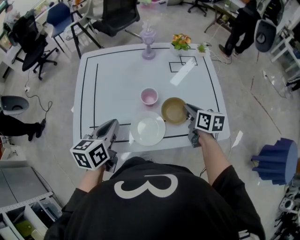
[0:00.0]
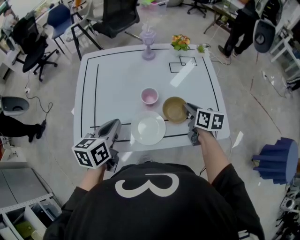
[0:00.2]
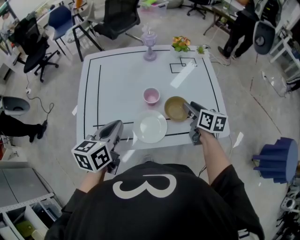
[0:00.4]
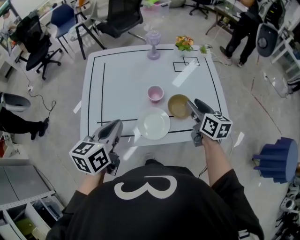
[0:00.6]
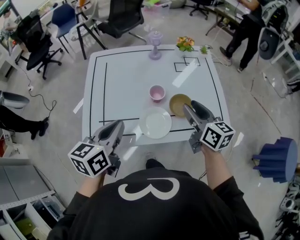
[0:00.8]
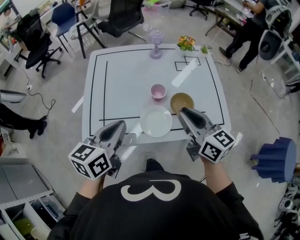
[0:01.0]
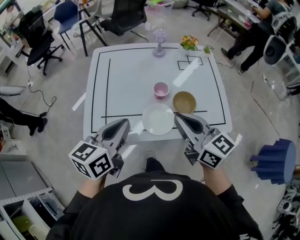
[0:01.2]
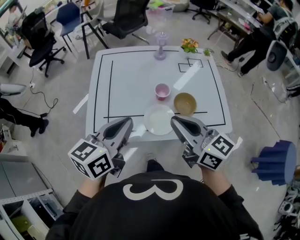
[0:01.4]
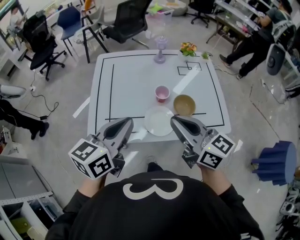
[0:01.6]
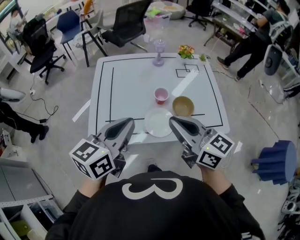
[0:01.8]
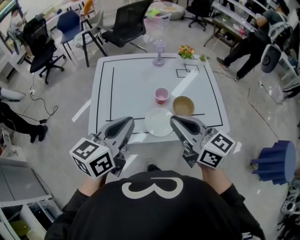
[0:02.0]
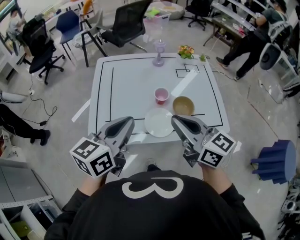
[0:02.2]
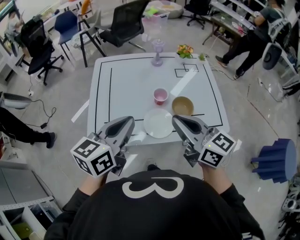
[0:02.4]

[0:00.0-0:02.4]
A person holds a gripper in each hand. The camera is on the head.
0:00.0 to 0:01.2: The left gripper is displaced upward and backward by about 10 cm. Meanwhile the right gripper goes about 25 cm upward, backward and to the left, rotates about 40 degrees, and opens, then closes once more.
0:01.2 to 0:02.4: The grippers move only a little.

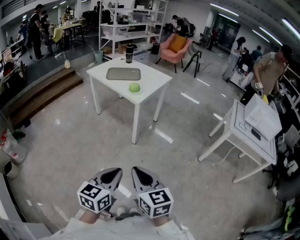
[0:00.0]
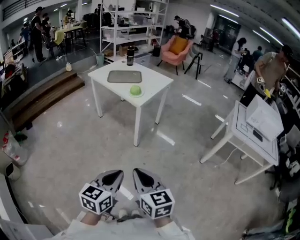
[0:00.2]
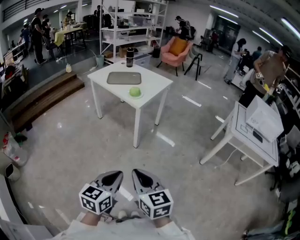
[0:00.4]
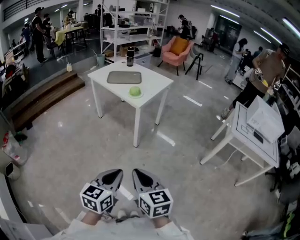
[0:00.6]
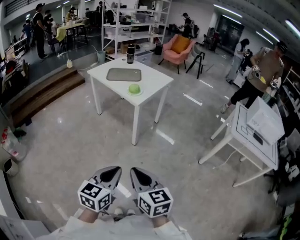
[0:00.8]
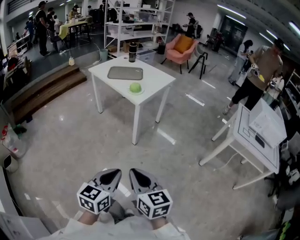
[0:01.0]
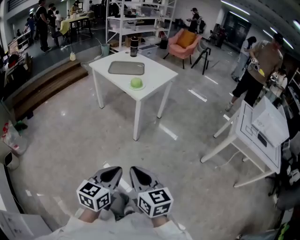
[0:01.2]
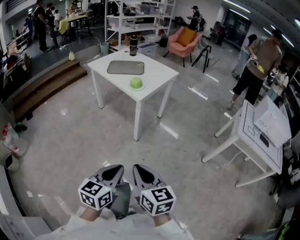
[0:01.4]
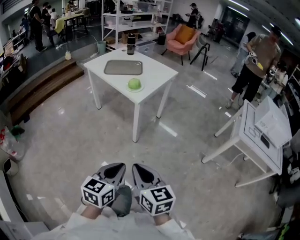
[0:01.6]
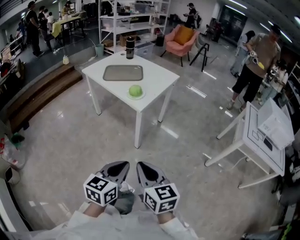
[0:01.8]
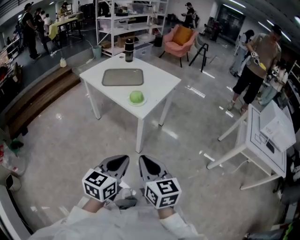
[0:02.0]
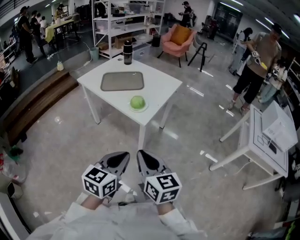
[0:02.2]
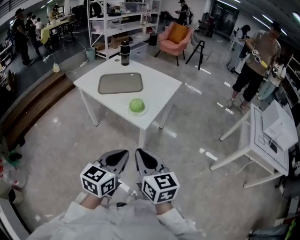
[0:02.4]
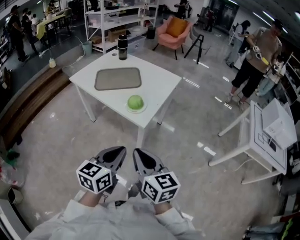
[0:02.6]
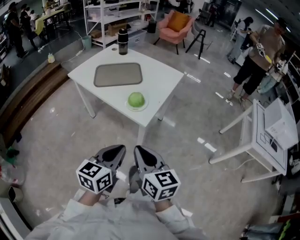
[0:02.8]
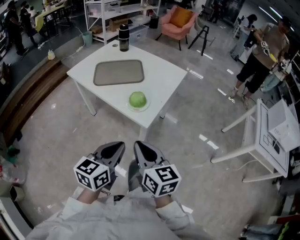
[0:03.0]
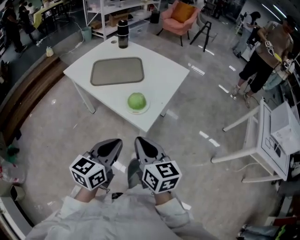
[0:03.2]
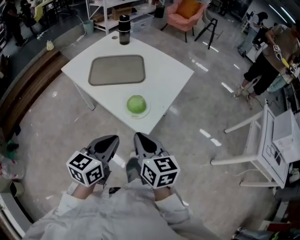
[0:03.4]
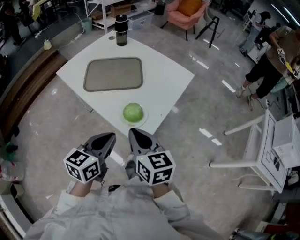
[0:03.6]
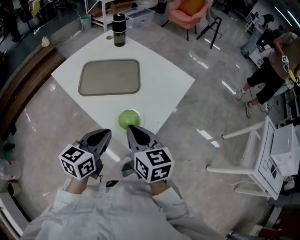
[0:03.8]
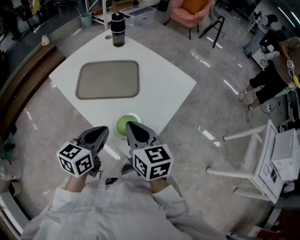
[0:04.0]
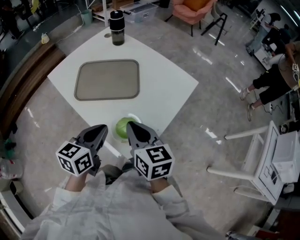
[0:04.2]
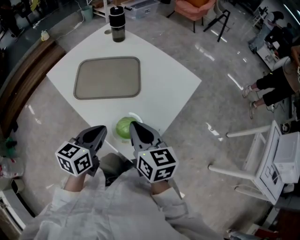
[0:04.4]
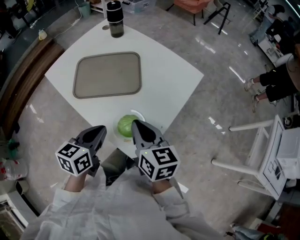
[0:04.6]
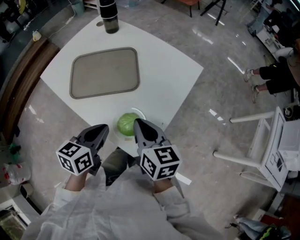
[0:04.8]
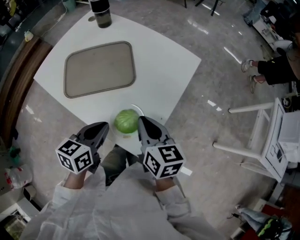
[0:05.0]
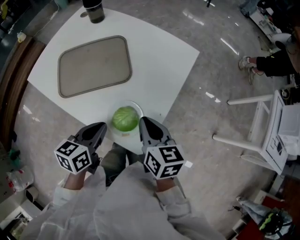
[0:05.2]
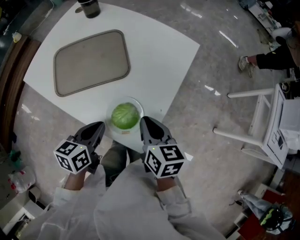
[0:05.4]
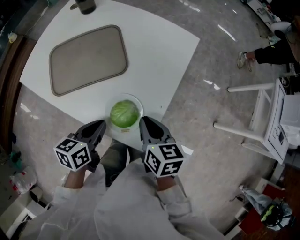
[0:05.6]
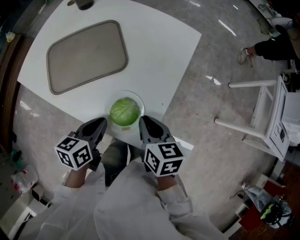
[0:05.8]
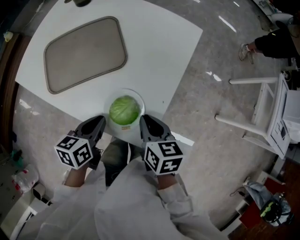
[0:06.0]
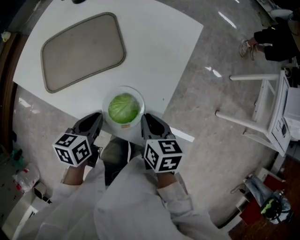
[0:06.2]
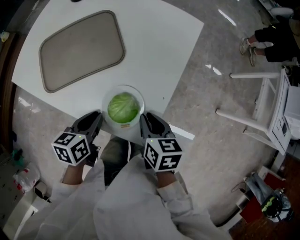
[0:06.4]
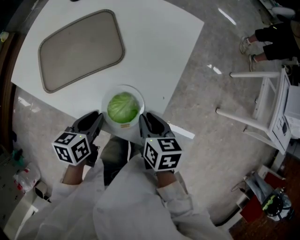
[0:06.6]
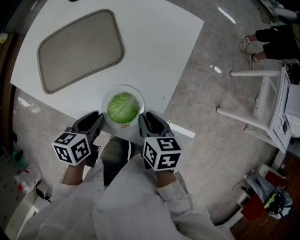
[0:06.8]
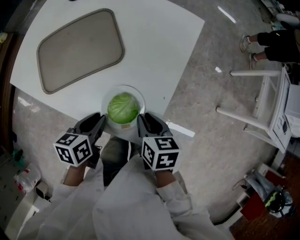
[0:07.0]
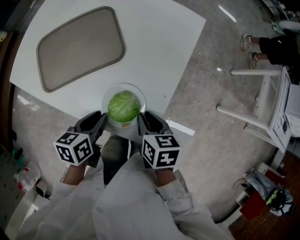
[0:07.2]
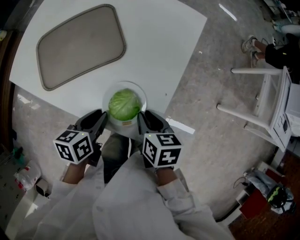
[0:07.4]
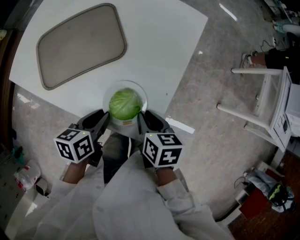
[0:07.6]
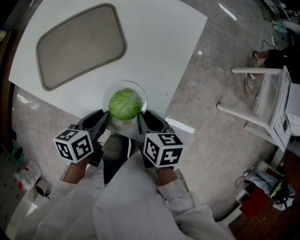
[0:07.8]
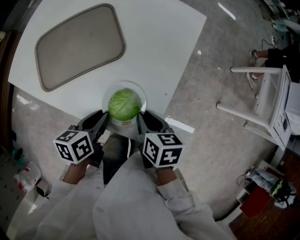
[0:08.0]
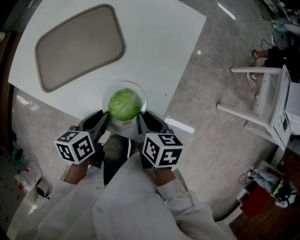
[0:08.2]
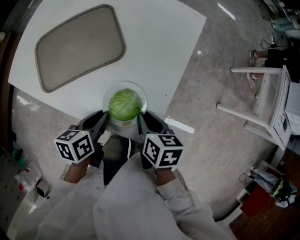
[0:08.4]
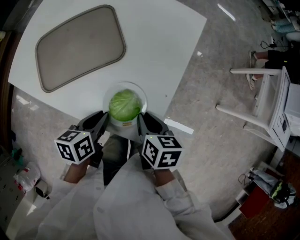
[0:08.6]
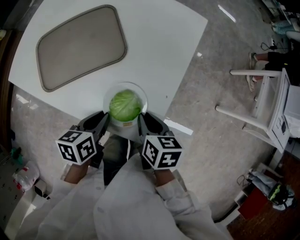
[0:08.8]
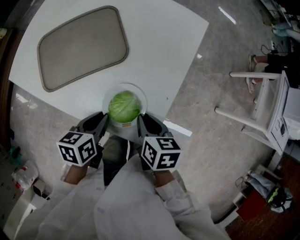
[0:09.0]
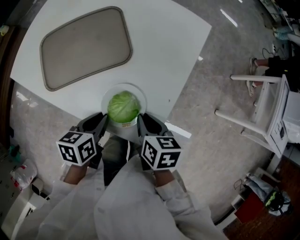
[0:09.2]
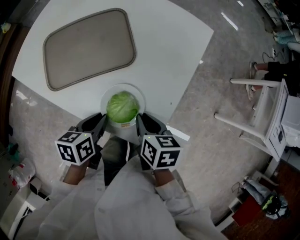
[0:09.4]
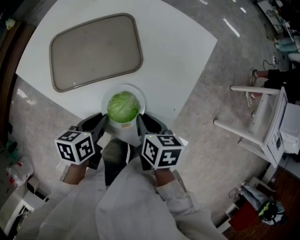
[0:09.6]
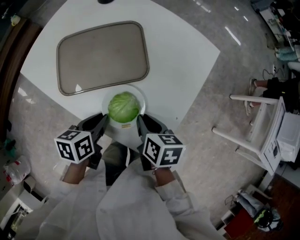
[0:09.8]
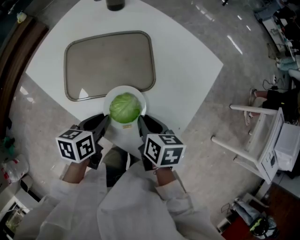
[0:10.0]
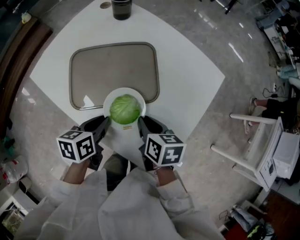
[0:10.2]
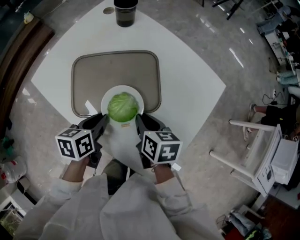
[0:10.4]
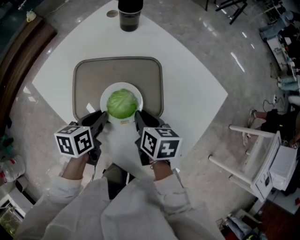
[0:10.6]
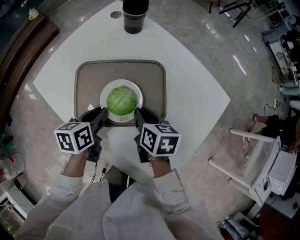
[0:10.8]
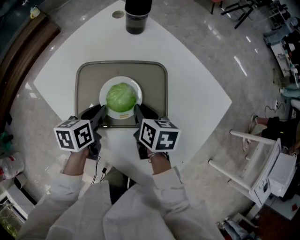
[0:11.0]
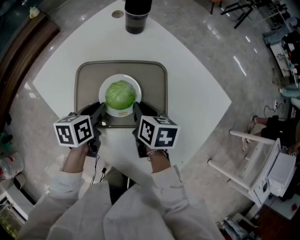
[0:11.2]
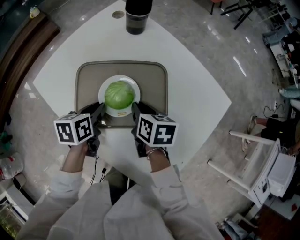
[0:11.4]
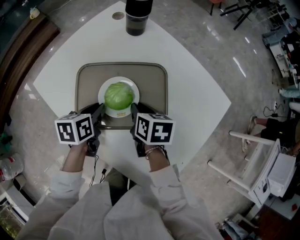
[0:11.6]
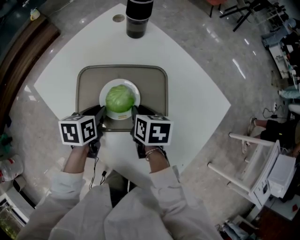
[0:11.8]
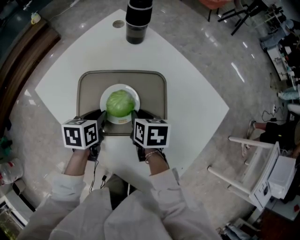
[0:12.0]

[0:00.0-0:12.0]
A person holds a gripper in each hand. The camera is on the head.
0:00.0 to 0:01.6: Both grippers travel together forward, approximately 15 cm.
0:01.6 to 0:03.0: Both grippers travel together forward, approximately 35 cm.
0:03.0 to 0:04.4: The grippers both shift forward by about 30 cm.
0:04.4 to 0:06.0: The grippers both shift downward by about 15 cm. The left gripper changes its angle by about 20 degrees. Meanwhile the right gripper swivels approximately 30 degrees.
0:06.0 to 0:09.0: The grippers make only small movements.
0:09.0 to 0:10.4: The left gripper travels to the left and forward by roughly 20 cm; the right gripper is displaced forward and to the left by some 20 cm.
0:10.4 to 0:12.0: The two grippers go about 10 cm forward.

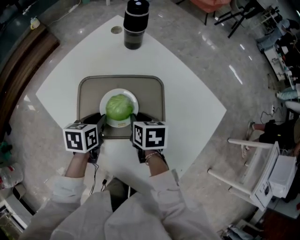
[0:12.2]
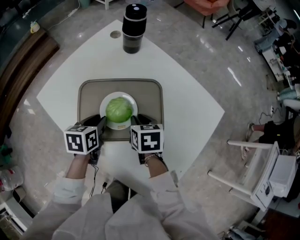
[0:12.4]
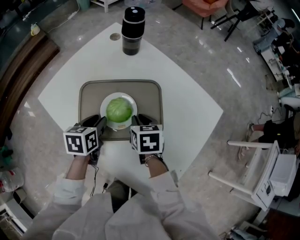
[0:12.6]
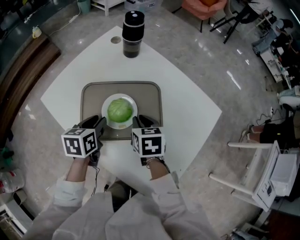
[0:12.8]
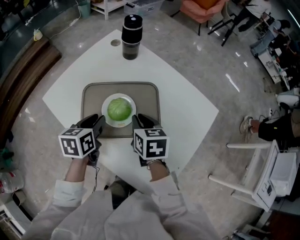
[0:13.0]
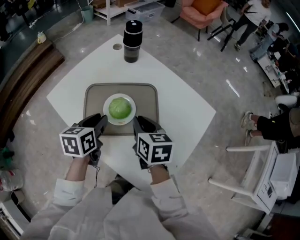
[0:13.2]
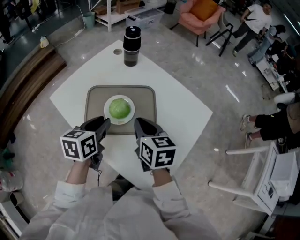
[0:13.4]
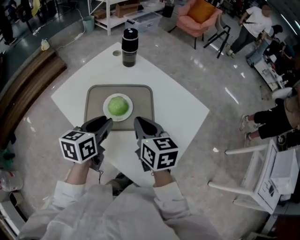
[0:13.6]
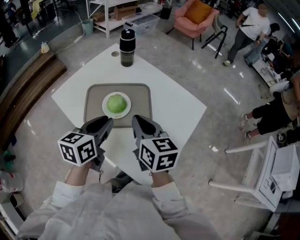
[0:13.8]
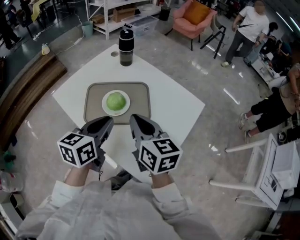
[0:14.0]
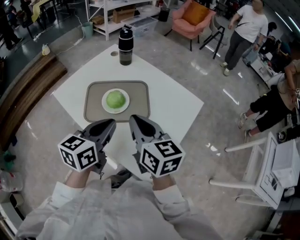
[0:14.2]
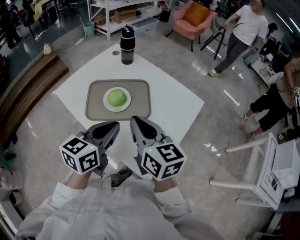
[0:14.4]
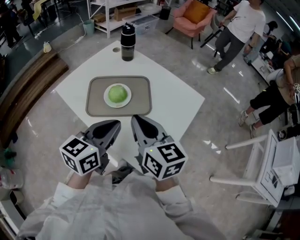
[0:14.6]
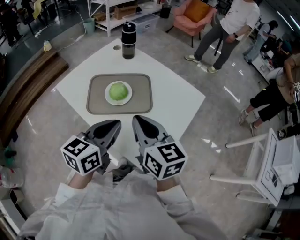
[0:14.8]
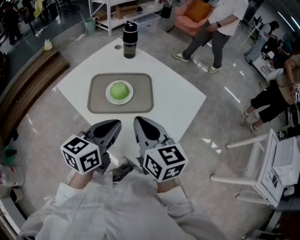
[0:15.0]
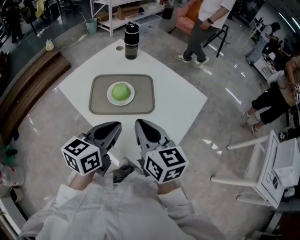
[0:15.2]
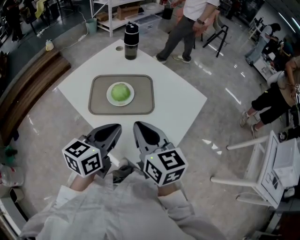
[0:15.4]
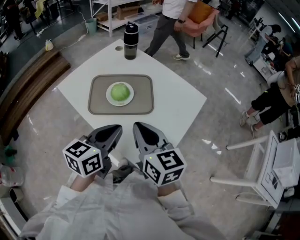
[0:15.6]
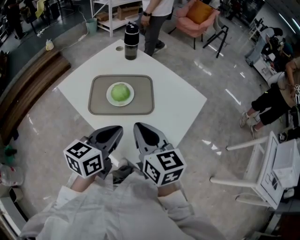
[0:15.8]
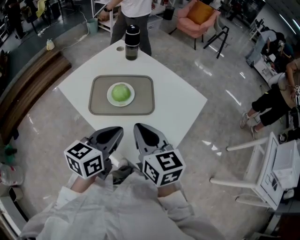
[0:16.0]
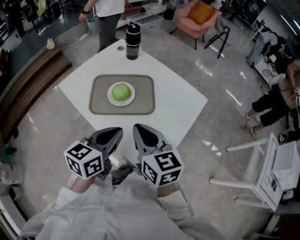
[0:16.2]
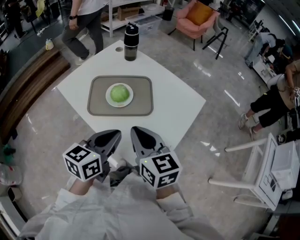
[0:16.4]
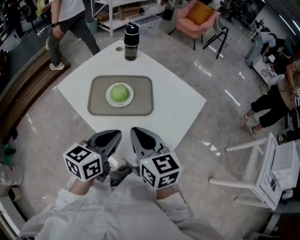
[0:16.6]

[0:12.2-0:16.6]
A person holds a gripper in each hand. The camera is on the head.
0:12.2 to 0:13.6: The two grippers go roughly 20 cm upward and backward. The right gripper changes its angle by some 30 degrees. The left gripper turns by about 20 degrees.
0:13.6 to 0:15.2: The left gripper moves backward, to the right and upward, about 15 cm, and closes its fingers; the right gripper heads backward and upward, covering about 15 cm.
0:15.2 to 0:16.6: The grippers stay close to where they were, moving slightly.

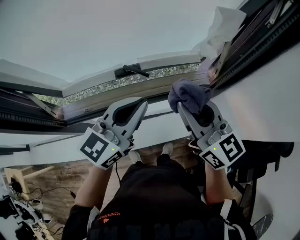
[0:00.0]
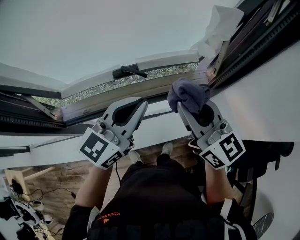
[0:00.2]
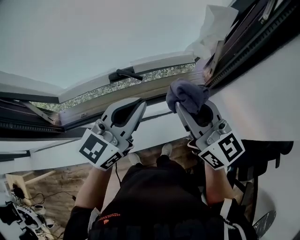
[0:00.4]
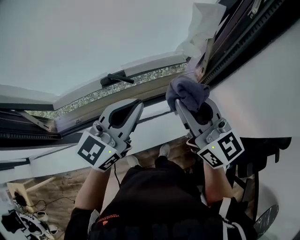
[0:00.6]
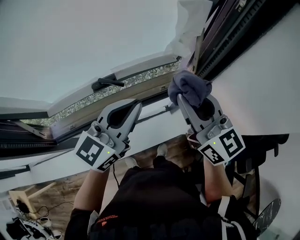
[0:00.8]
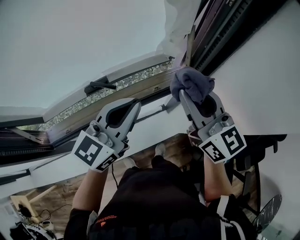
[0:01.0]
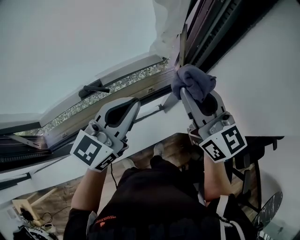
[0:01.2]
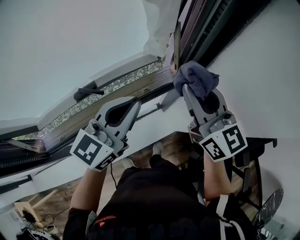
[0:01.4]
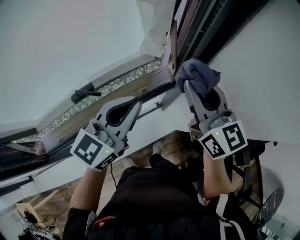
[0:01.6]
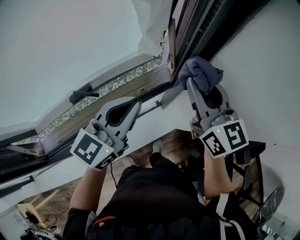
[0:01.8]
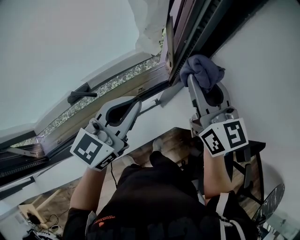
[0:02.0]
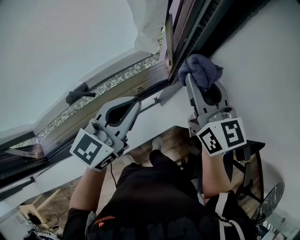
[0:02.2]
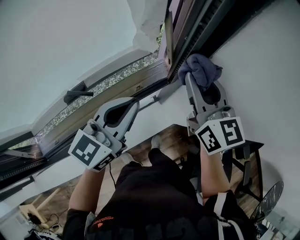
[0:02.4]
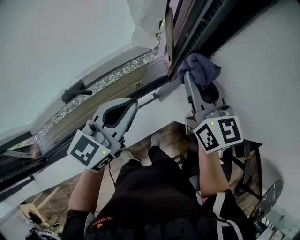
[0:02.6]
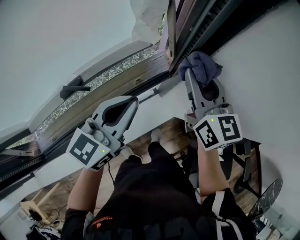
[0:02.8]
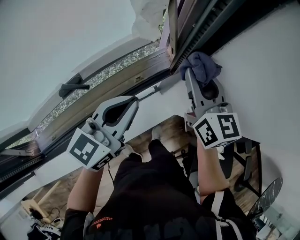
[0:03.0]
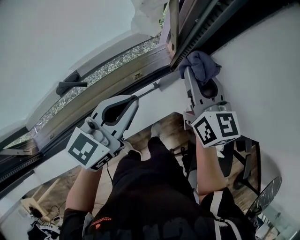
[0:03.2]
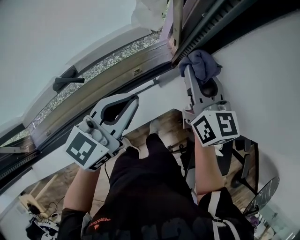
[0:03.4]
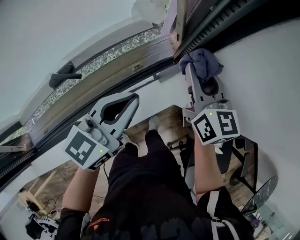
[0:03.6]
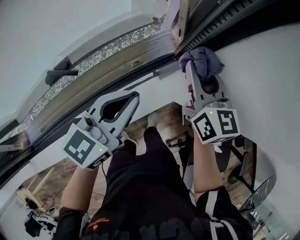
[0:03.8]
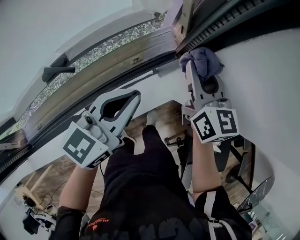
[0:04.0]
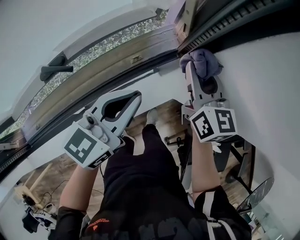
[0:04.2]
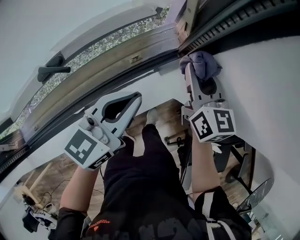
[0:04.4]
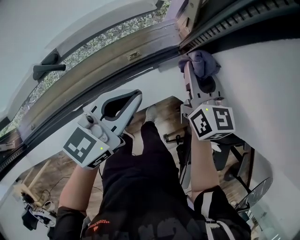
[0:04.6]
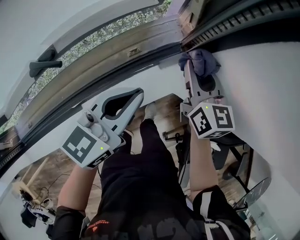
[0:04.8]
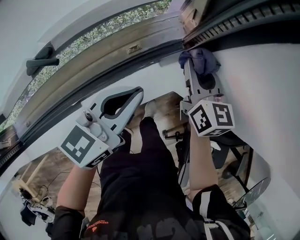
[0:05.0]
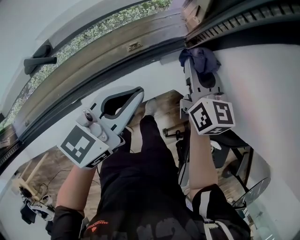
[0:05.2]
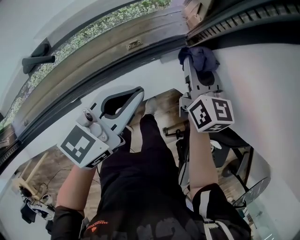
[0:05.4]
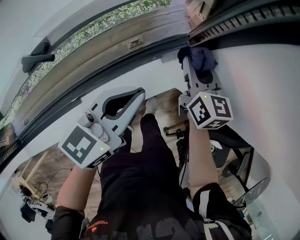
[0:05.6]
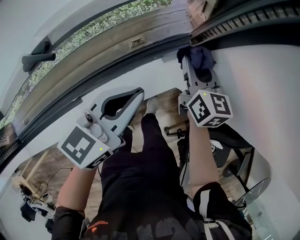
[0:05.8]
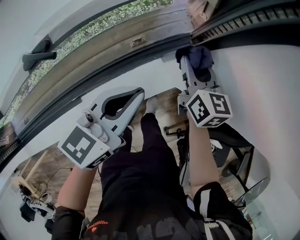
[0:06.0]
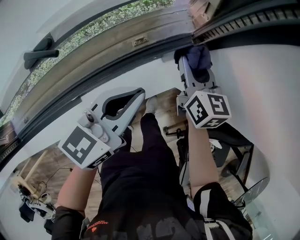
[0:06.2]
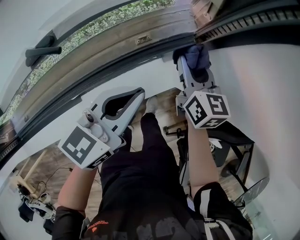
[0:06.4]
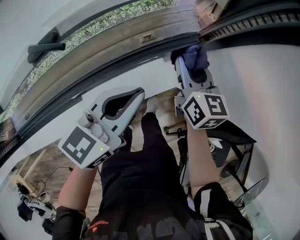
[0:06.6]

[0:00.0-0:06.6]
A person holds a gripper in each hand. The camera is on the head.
0:00.0 to 0:01.6: The two grippers go approximately 20 cm to the right and forward. The right gripper rotates approximately 20 degrees.
0:01.6 to 0:03.2: Both grippers travel together downward, some 10 cm.
0:03.2 to 0:05.0: Both grippers travel together downward, roughly 15 cm.
0:05.0 to 0:06.6: The right gripper moves some 5 cm.
